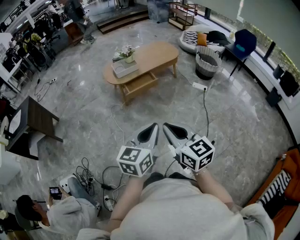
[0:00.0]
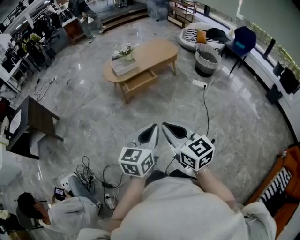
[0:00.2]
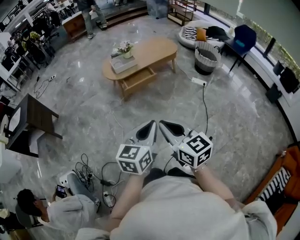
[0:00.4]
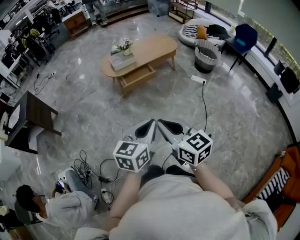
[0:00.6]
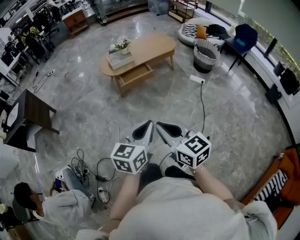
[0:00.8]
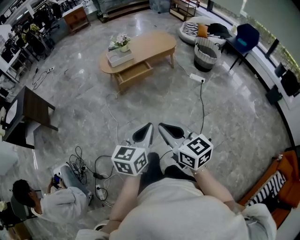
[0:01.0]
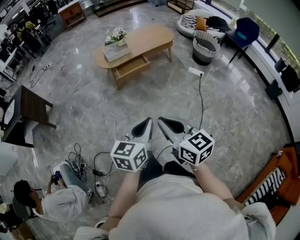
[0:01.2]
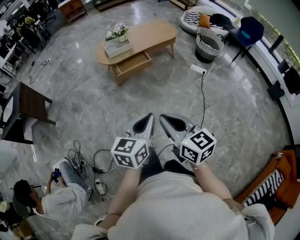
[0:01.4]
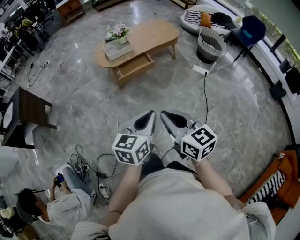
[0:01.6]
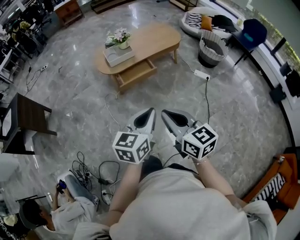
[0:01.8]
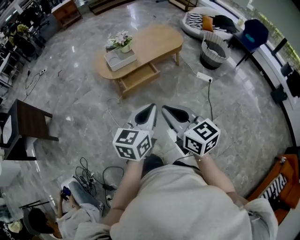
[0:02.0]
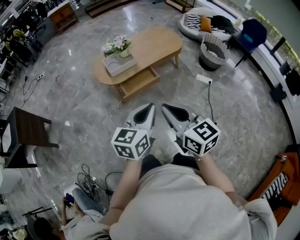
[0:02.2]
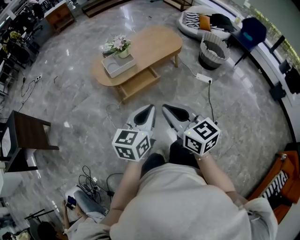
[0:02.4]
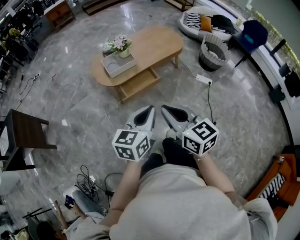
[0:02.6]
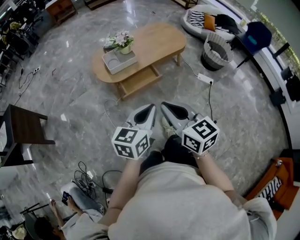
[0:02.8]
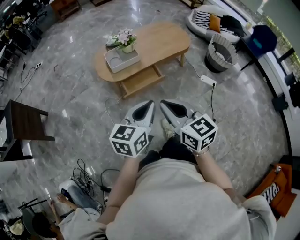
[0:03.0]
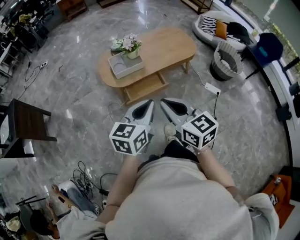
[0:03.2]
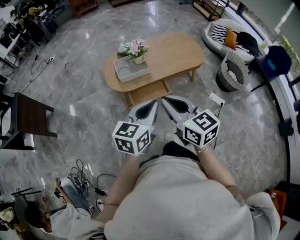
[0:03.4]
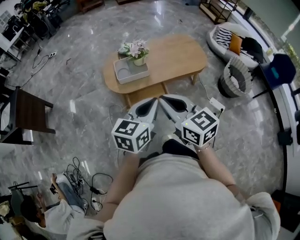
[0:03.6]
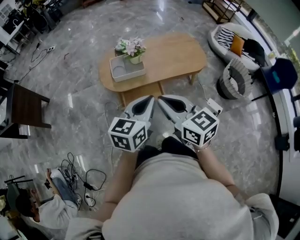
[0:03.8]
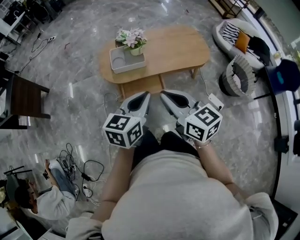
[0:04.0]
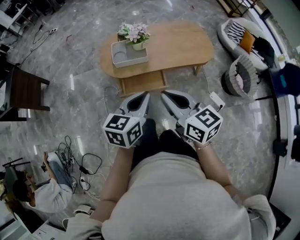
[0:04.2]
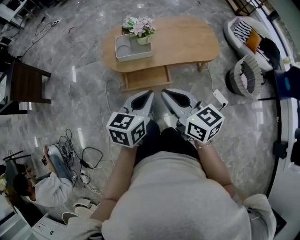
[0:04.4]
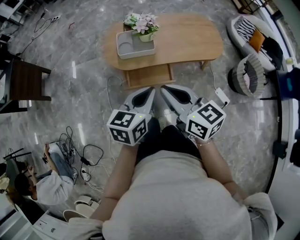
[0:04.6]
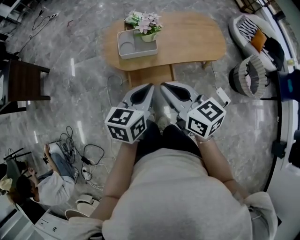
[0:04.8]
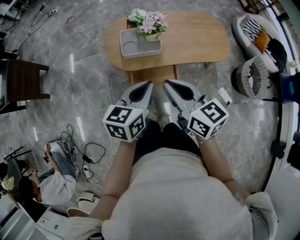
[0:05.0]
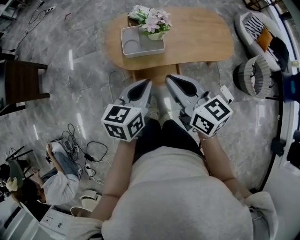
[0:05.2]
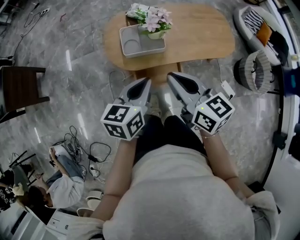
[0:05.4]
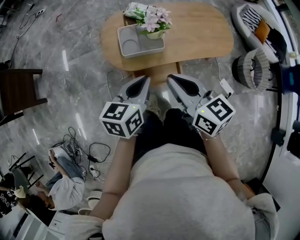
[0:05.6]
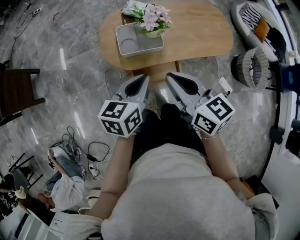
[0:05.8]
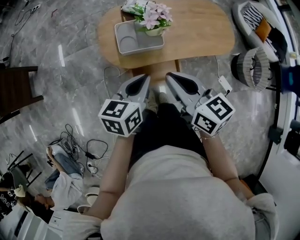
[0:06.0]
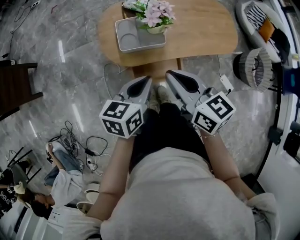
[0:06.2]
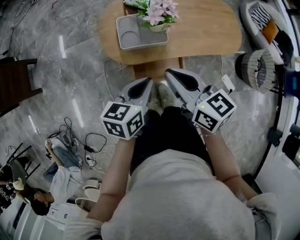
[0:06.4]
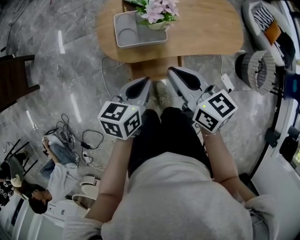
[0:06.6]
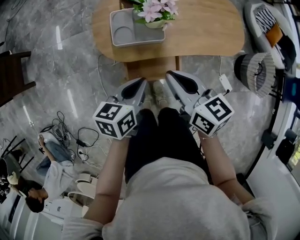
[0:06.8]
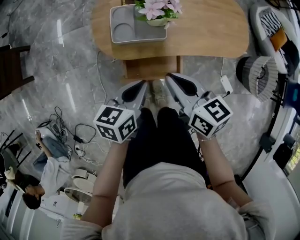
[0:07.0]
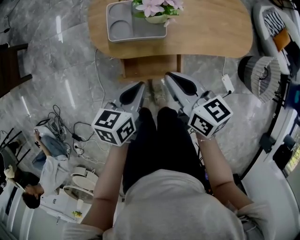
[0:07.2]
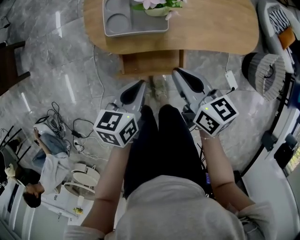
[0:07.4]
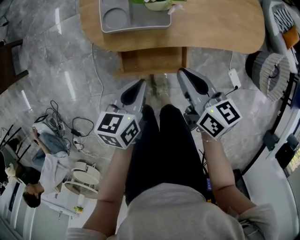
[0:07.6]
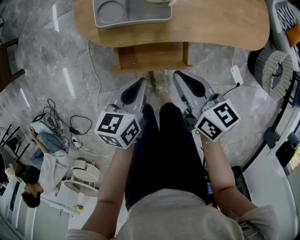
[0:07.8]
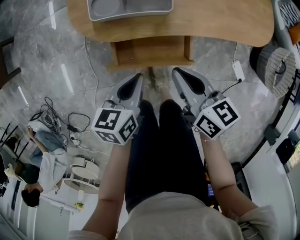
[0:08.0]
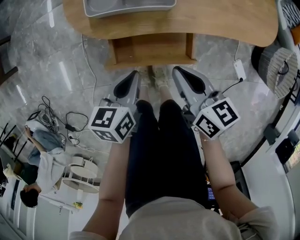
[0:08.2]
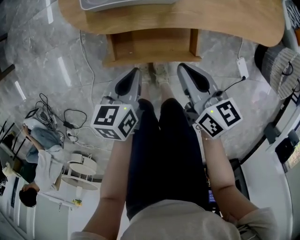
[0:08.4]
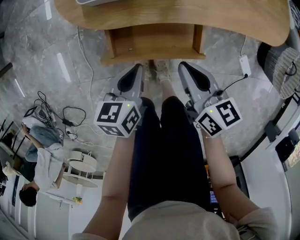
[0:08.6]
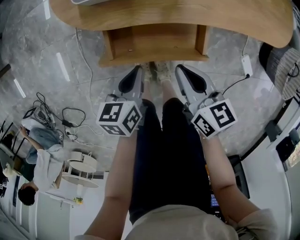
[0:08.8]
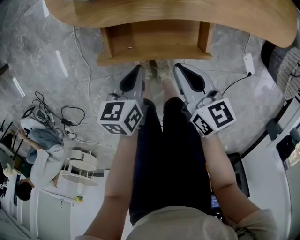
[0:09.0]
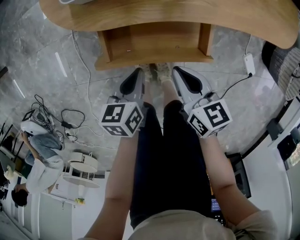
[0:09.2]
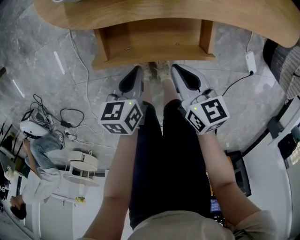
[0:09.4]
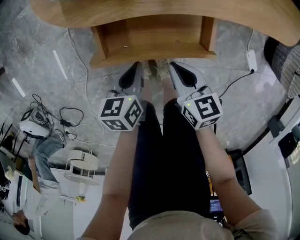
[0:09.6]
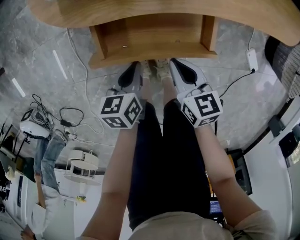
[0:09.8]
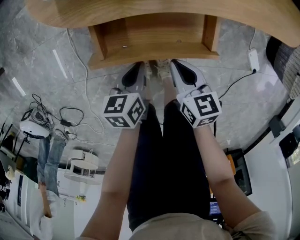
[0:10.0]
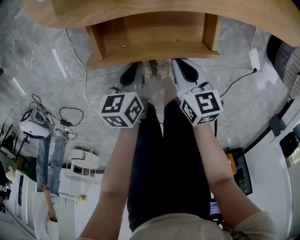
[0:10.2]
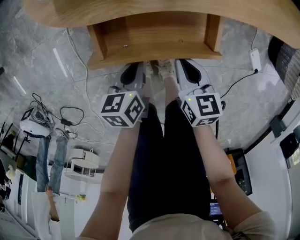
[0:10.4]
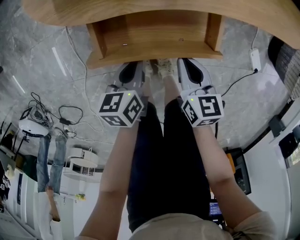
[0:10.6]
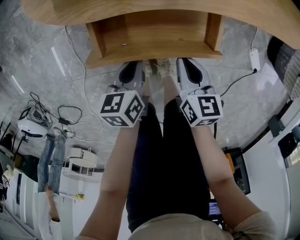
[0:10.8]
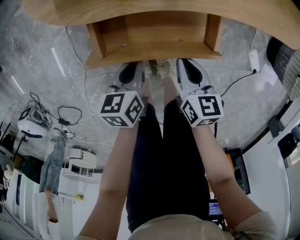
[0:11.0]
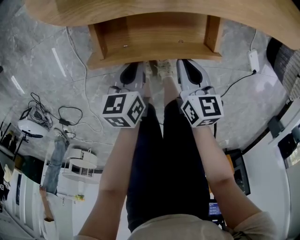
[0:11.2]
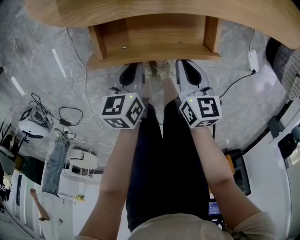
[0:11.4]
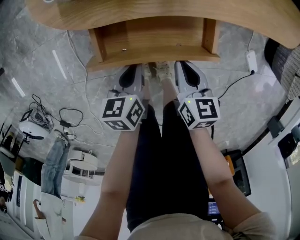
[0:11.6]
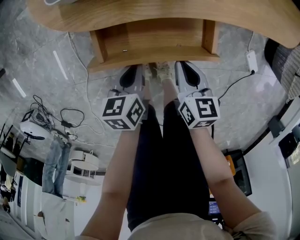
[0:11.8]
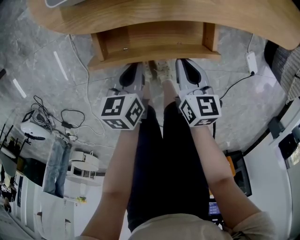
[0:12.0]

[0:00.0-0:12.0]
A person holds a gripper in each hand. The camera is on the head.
0:00.0 to 0:01.6: The right gripper travels forward and to the right by about 10 cm, while the left gripper moves forward, downward and to the right, some 15 cm.
0:01.6 to 0:03.0: Both grippers travel together forward, roughly 30 cm.
0:03.0 to 0:04.4: The two grippers go approximately 20 cm forward and to the right. The right gripper turns by some 20 degrees.
0:04.4 to 0:06.0: The right gripper goes roughly 20 cm forward, while the left gripper travels forward and to the left by approximately 25 cm.
0:06.0 to 0:07.6: Both grippers move downward, some 20 cm.
0:07.6 to 0:09.0: The two grippers go some 20 cm downward.
0:09.0 to 0:10.4: Both grippers move downward, roughly 10 cm.
0:10.4 to 0:12.0: There are only small adjustments of the grippers.

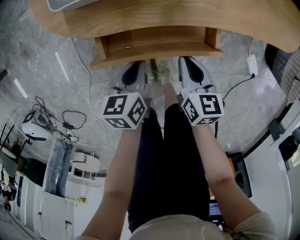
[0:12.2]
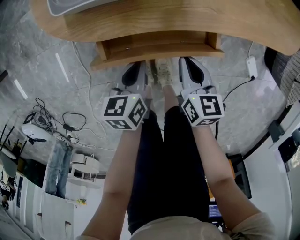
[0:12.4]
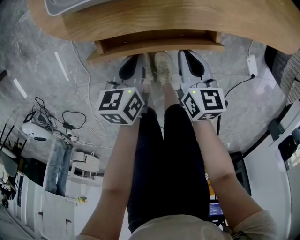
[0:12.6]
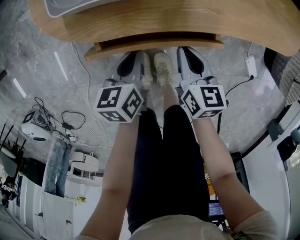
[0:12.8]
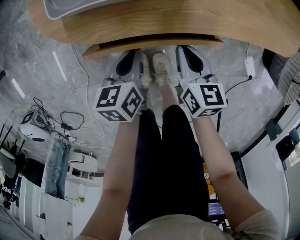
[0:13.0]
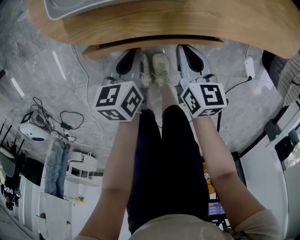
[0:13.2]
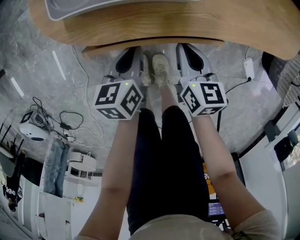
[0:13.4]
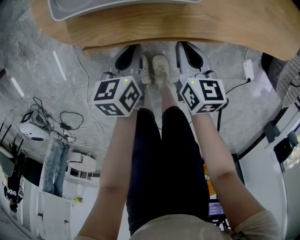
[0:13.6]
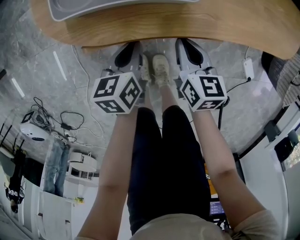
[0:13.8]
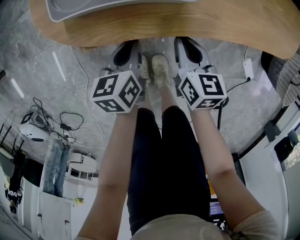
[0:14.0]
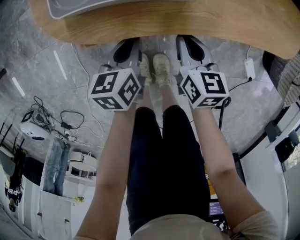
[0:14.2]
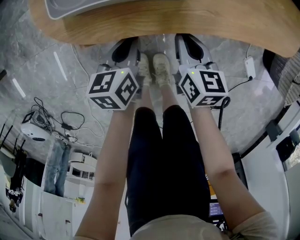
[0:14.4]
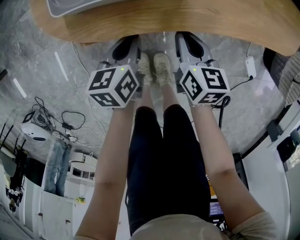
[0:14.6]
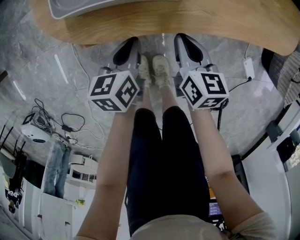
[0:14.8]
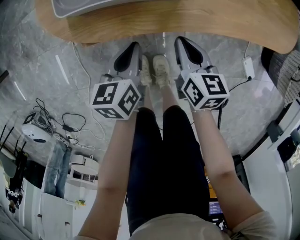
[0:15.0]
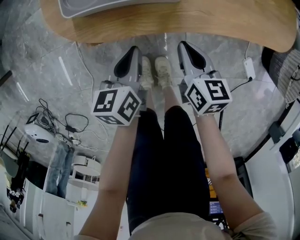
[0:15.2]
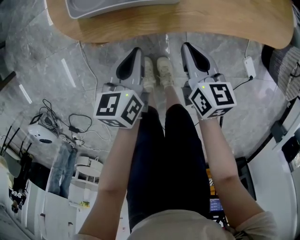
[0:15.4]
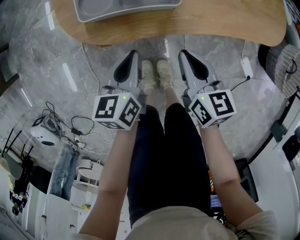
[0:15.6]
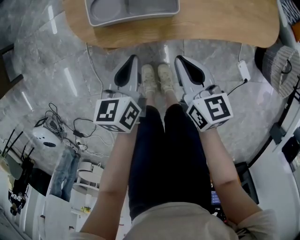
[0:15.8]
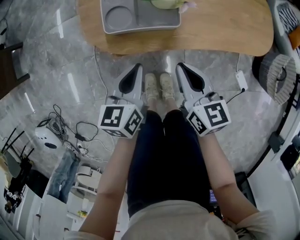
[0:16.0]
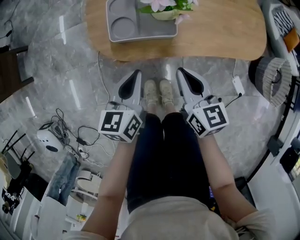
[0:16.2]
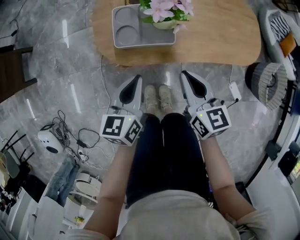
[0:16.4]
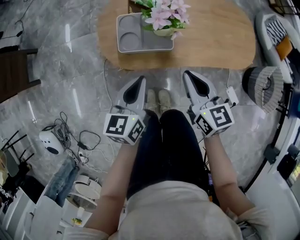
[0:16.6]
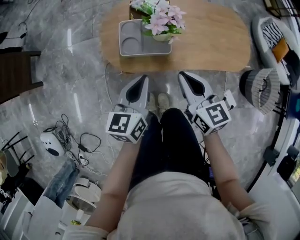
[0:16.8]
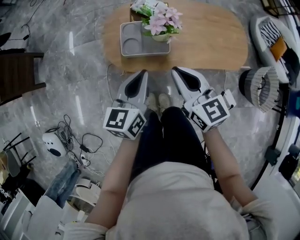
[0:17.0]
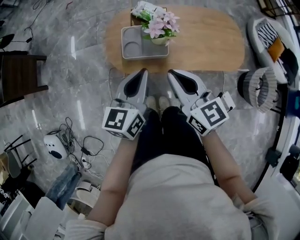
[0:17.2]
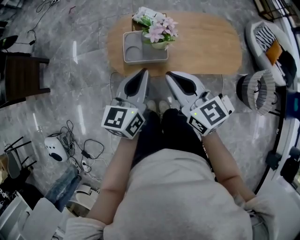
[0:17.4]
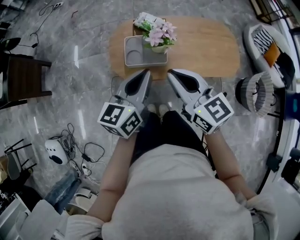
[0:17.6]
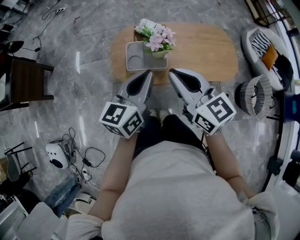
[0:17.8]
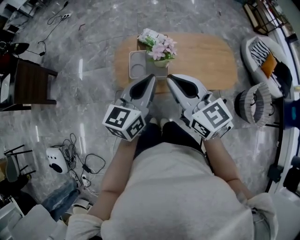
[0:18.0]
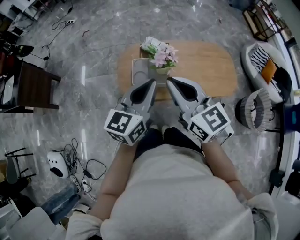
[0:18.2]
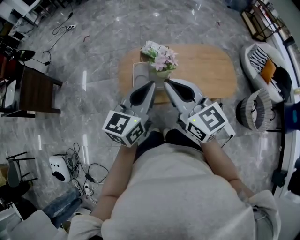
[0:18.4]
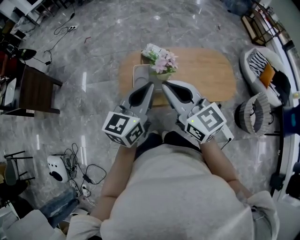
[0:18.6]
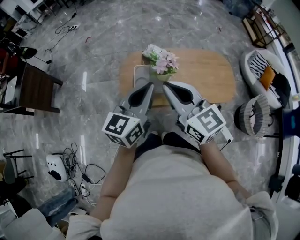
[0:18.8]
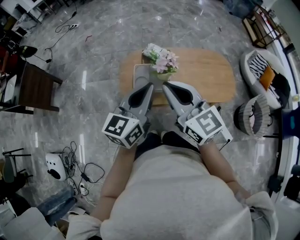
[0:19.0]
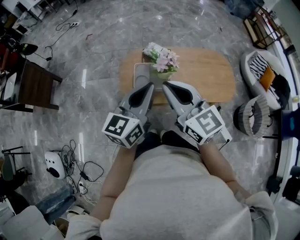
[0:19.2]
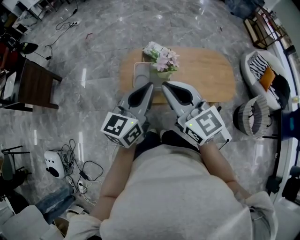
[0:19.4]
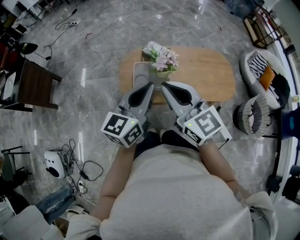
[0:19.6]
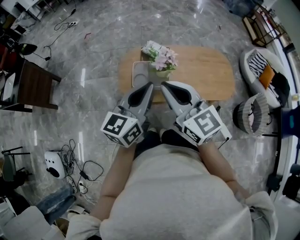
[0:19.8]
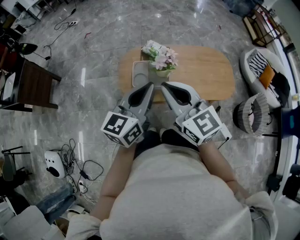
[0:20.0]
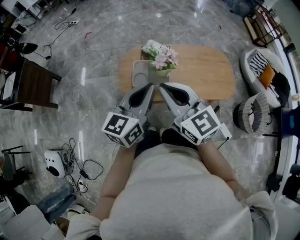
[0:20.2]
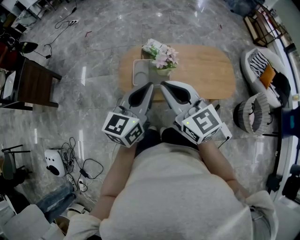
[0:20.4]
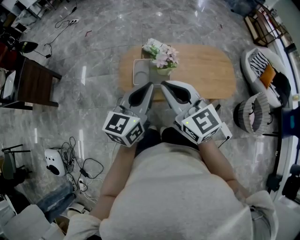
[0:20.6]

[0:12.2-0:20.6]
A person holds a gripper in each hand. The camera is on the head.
0:12.2 to 0:13.6: Both grippers move forward, about 10 cm.
0:13.6 to 0:15.0: There are only small adjustments of the grippers.
0:15.0 to 0:16.4: The grippers both shift upward by some 30 cm.
0:16.4 to 0:17.8: The grippers both shift upward by roughly 25 cm. The right gripper swivels approximately 20 degrees; the left gripper rotates about 20 degrees.
0:17.8 to 0:19.2: Both grippers move upward, about 5 cm.
0:19.2 to 0:20.6: The grippers make only small movements.

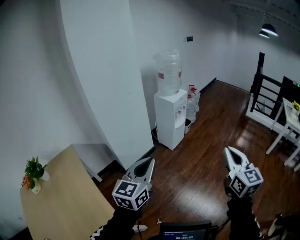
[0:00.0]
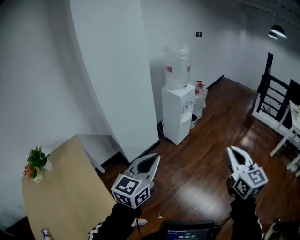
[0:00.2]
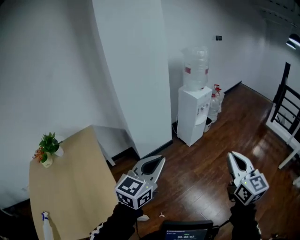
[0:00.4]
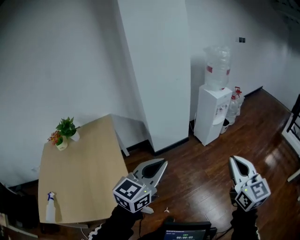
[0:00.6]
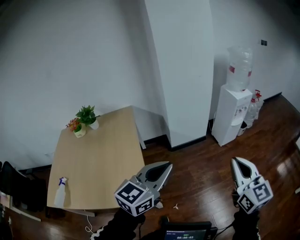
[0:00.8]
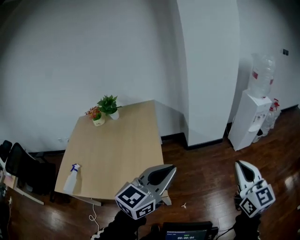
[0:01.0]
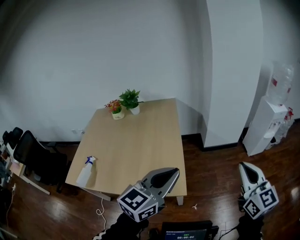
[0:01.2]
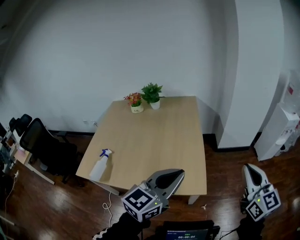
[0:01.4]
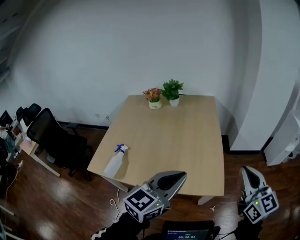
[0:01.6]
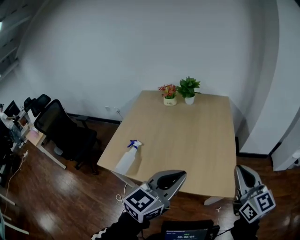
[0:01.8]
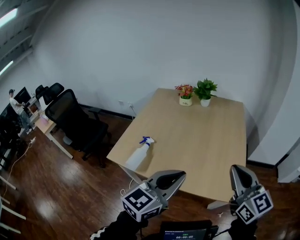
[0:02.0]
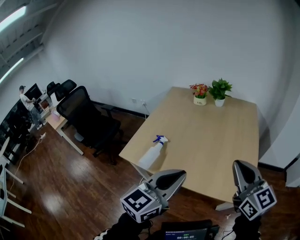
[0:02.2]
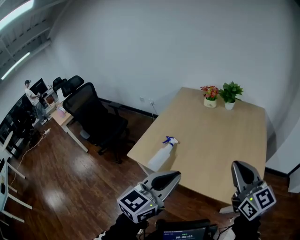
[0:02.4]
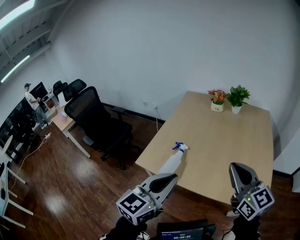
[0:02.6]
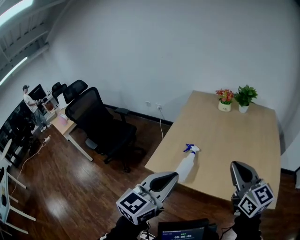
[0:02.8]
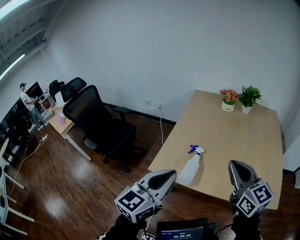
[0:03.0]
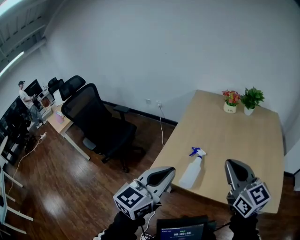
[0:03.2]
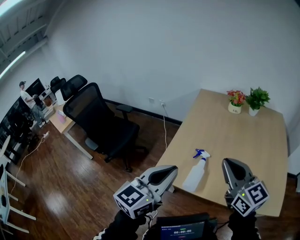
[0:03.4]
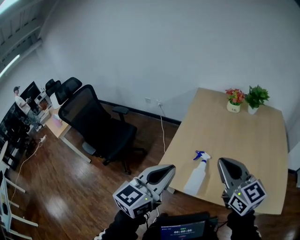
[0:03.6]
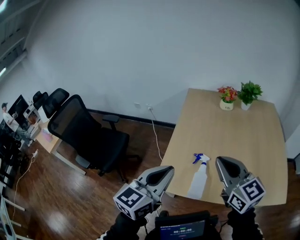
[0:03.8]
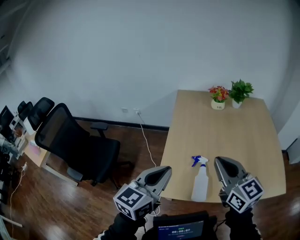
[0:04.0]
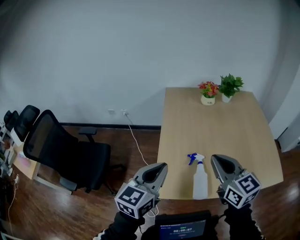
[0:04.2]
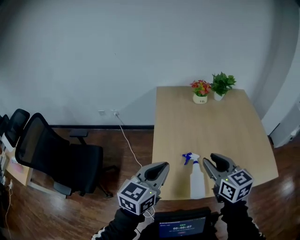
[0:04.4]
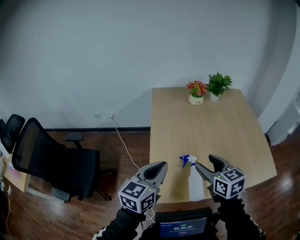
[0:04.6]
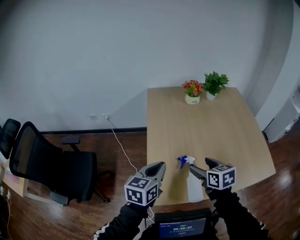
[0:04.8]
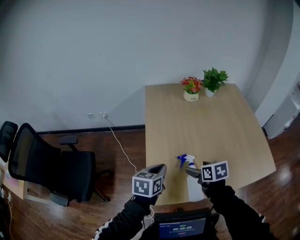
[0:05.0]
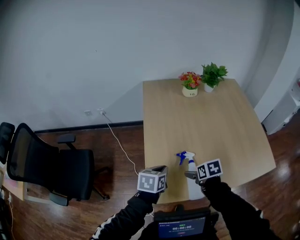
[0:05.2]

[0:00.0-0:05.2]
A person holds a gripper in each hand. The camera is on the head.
0:00.0 to 0:01.8: The two grippers travel together, some 90 cm. The left gripper swivels roughly 40 degrees, while the right gripper swivels approximately 70 degrees.
0:01.8 to 0:03.4: Both grippers are carried to the left, some 60 cm.
0:03.4 to 0:05.2: The right gripper goes about 40 cm downward, forward and to the left, points its fingers roughly 60 degrees further downward, and opens its fingers; the left gripper heads forward, downward and to the left, covering about 40 cm, and tilts its fingers roughly 40 degrees downward.
